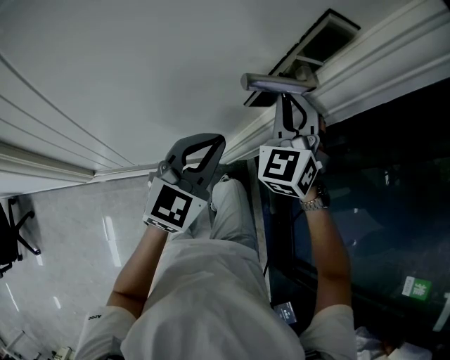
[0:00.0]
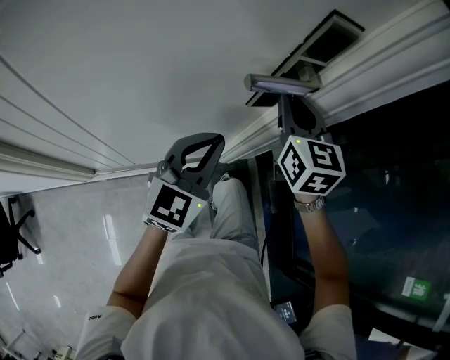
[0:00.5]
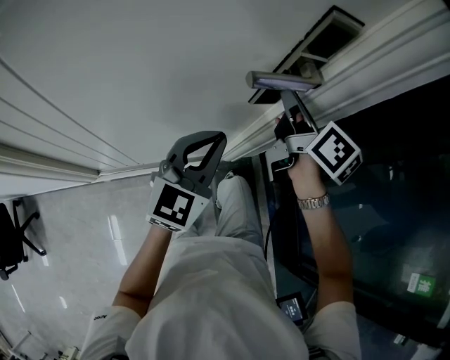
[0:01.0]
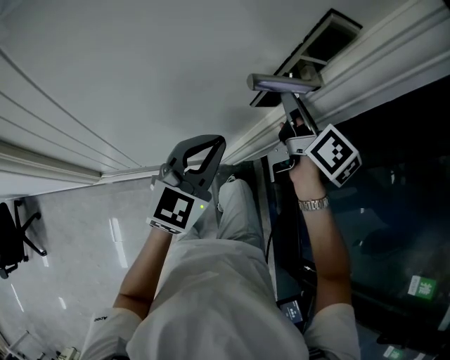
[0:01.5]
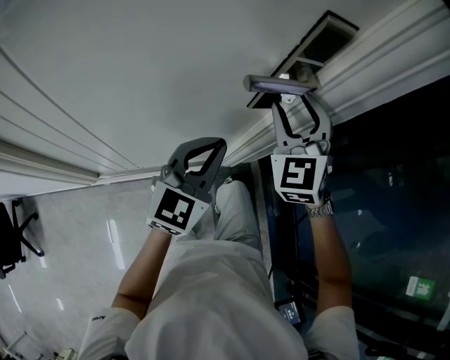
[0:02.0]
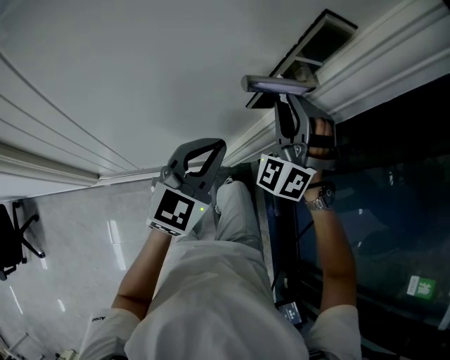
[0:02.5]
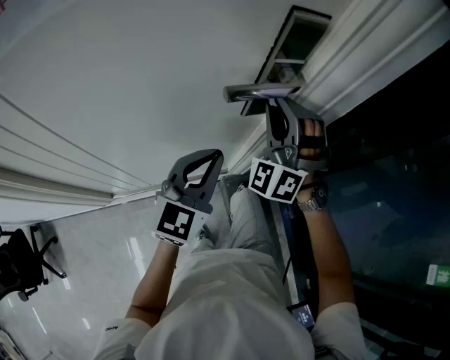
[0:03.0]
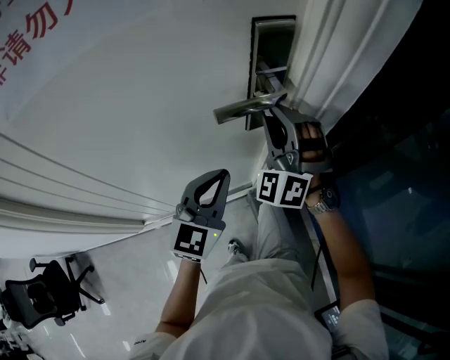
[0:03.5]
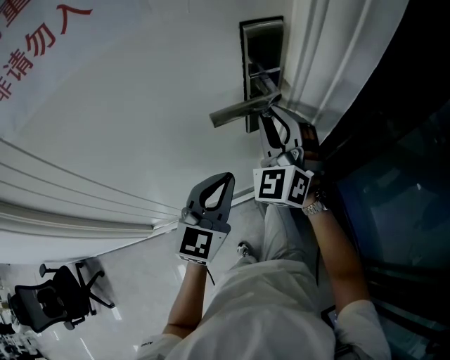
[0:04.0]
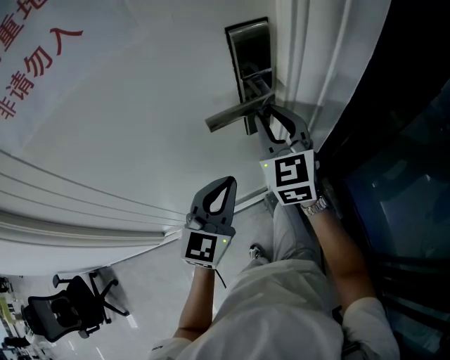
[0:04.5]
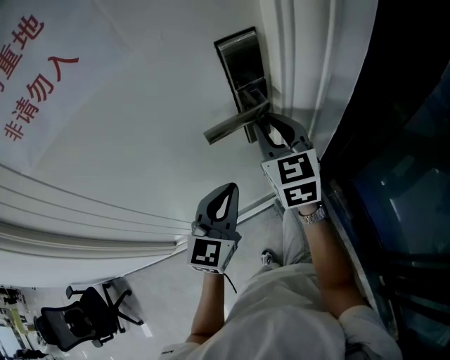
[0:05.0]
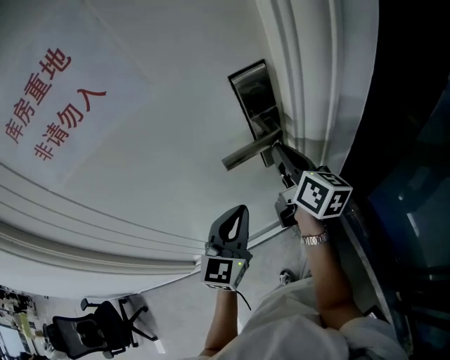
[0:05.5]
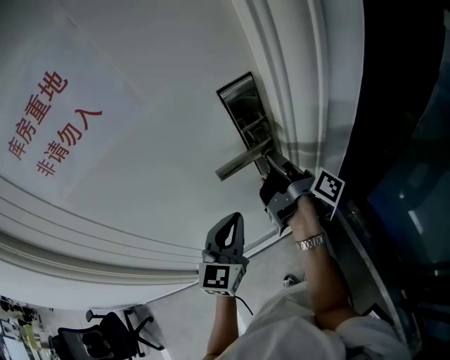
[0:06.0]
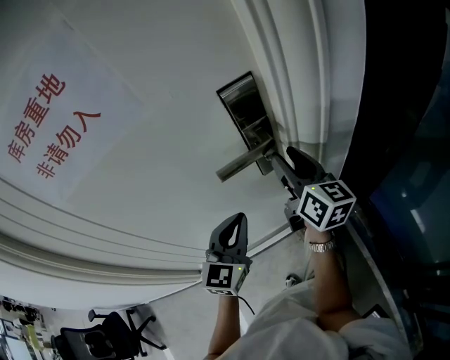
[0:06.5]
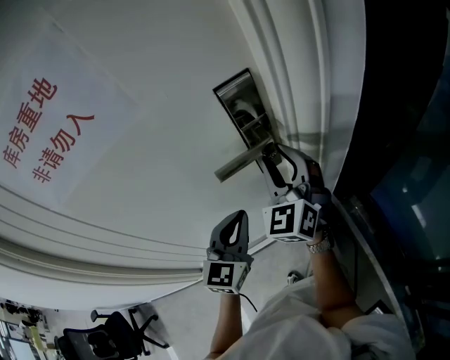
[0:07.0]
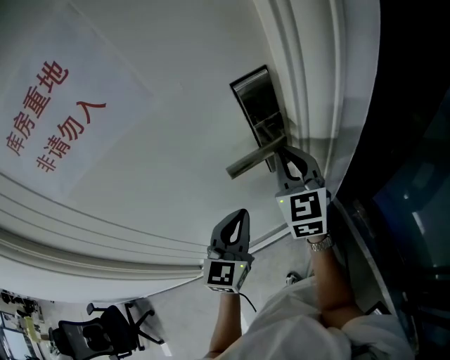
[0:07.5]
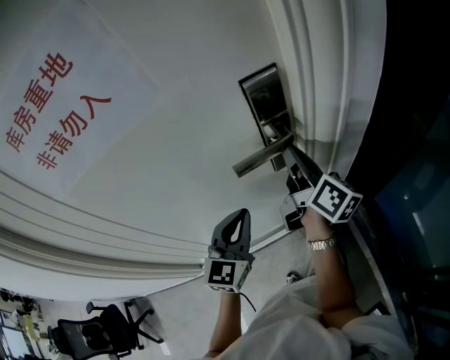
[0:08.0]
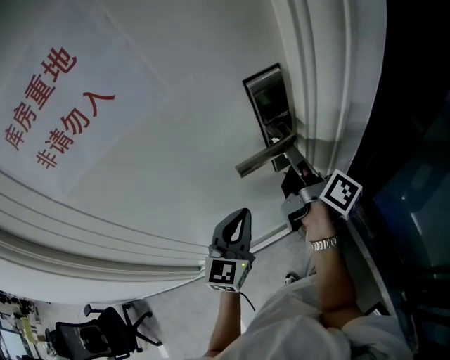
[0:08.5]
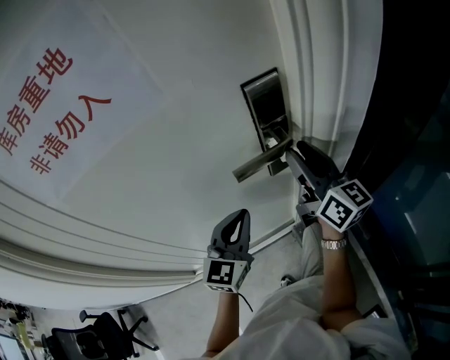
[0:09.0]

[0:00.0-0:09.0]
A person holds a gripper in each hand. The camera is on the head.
0:00.0 to 0:02.0: The right gripper opens up.
0:02.0 to 0:04.5: The right gripper changes its angle by about 30 degrees, and closes its fingers.
0:07.0 to 0:09.0: The right gripper twists roughly 60 degrees clockwise, seen from behind, and closes, then reopens.

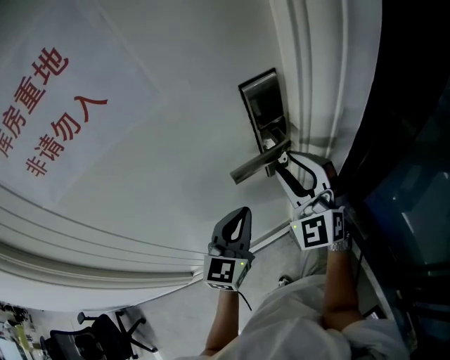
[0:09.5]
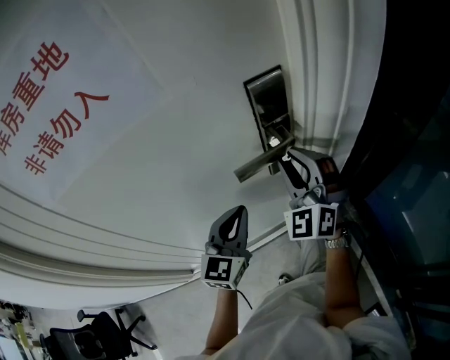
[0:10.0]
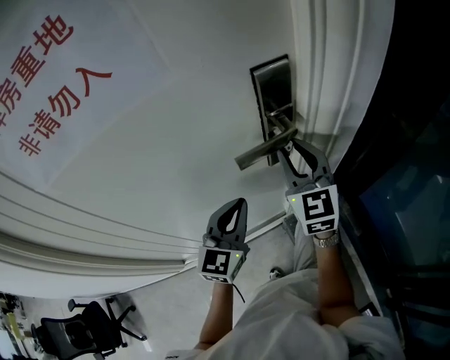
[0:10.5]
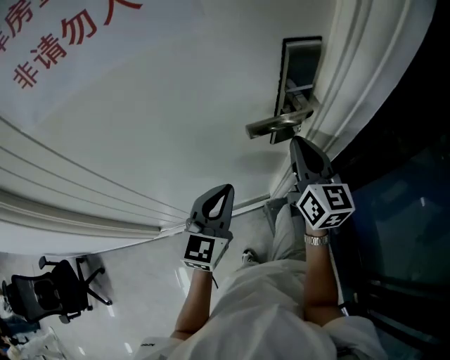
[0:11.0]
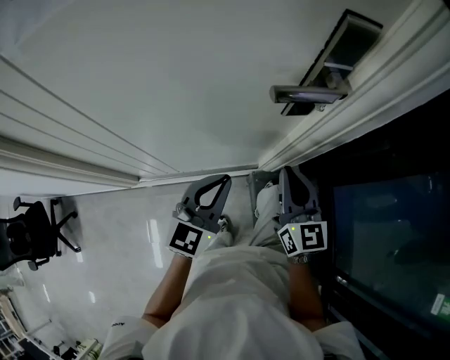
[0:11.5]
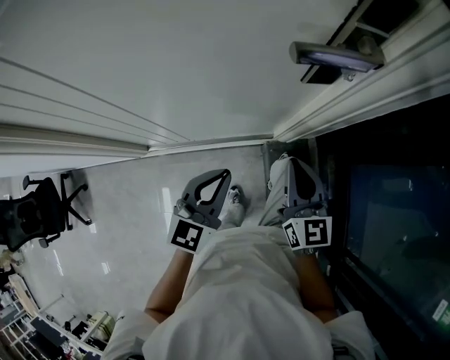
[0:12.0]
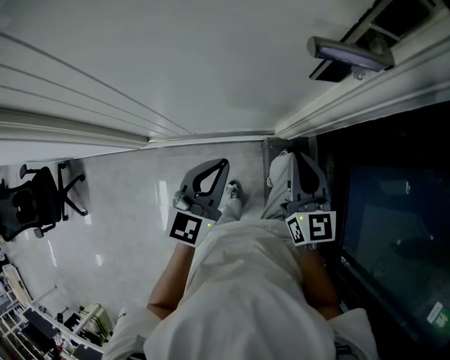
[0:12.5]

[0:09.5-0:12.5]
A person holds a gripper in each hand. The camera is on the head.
0:09.5 to 0:11.0: The left gripper moves some 5 cm; the right gripper twists some 60 degrees clockwise, seen from behind, and closes up.
0:11.0 to 0:12.5: The left gripper travels backward and downward by approximately 15 cm. The right gripper travels downward and backward by approximately 20 cm.

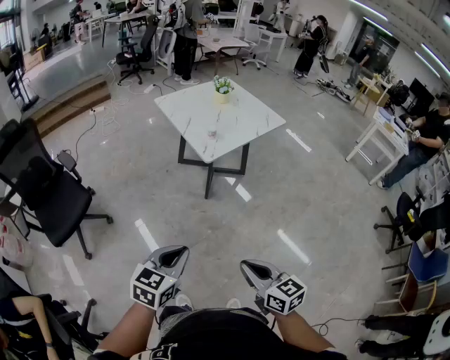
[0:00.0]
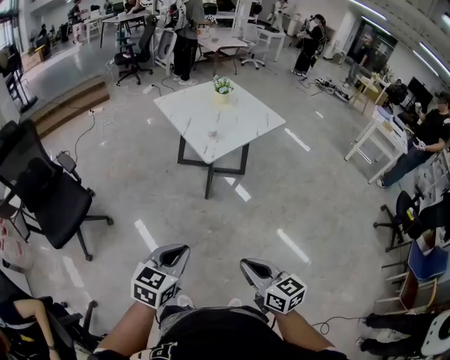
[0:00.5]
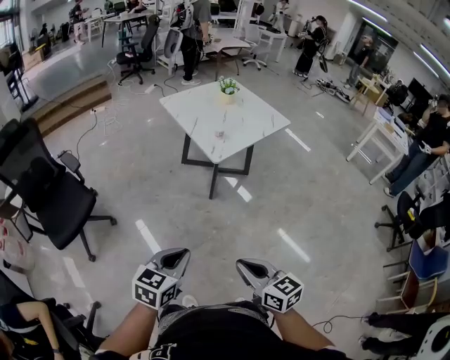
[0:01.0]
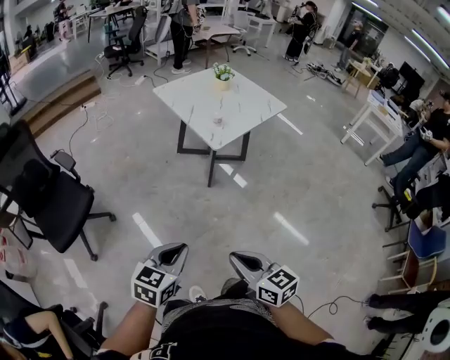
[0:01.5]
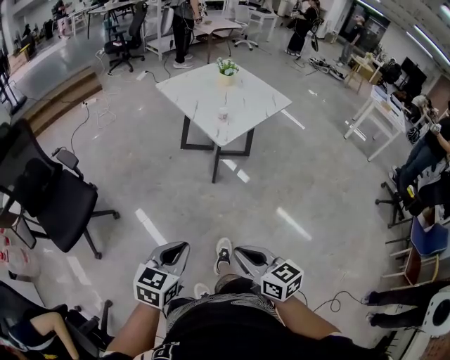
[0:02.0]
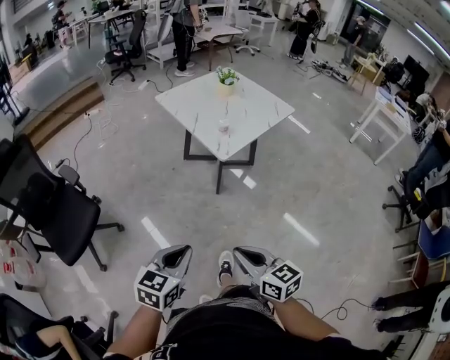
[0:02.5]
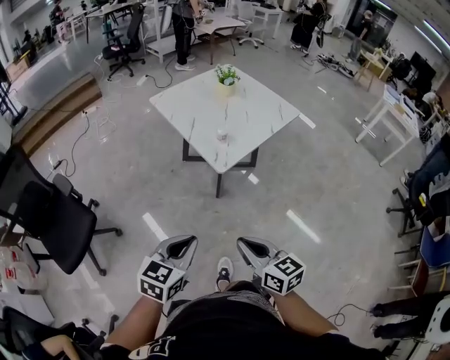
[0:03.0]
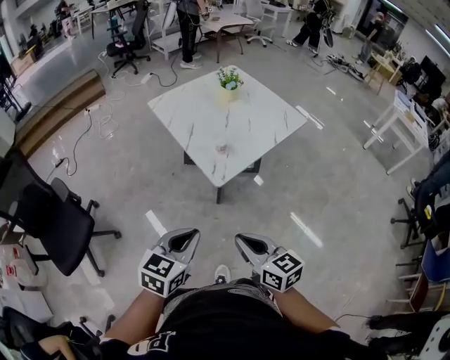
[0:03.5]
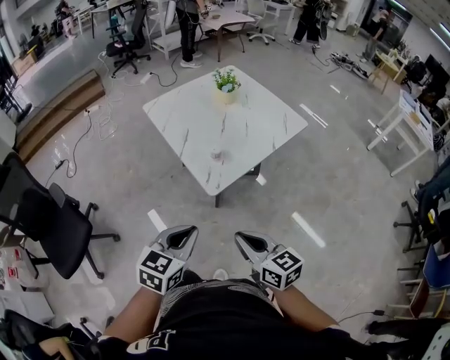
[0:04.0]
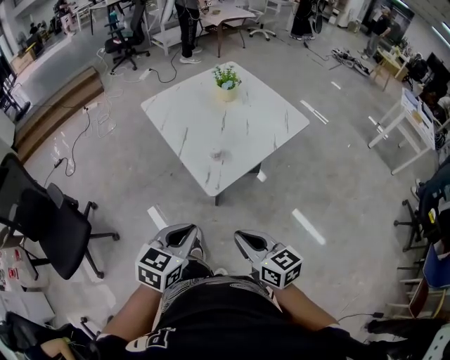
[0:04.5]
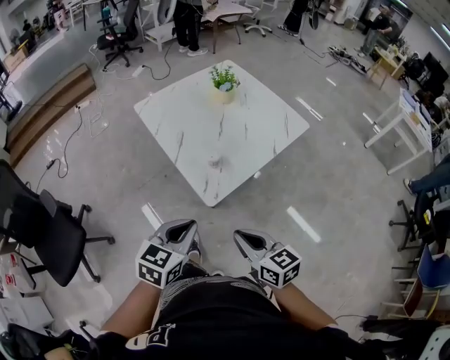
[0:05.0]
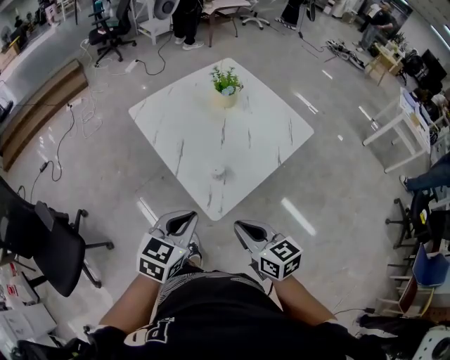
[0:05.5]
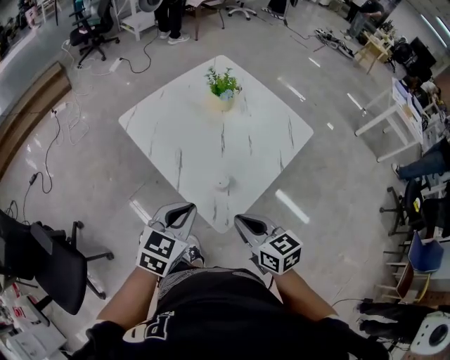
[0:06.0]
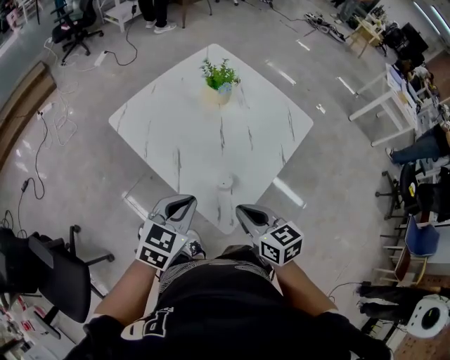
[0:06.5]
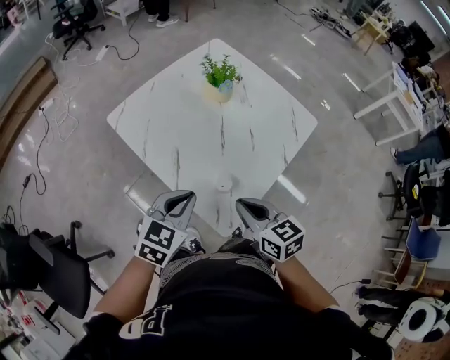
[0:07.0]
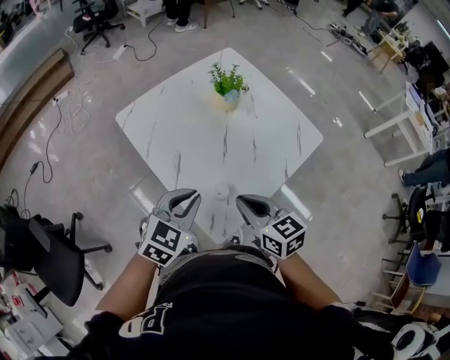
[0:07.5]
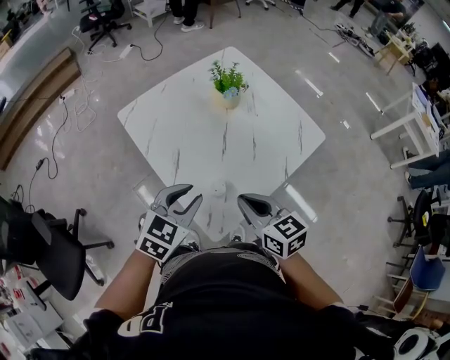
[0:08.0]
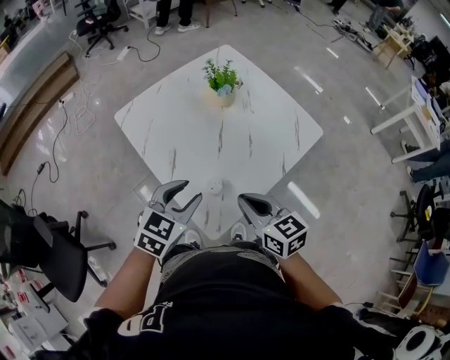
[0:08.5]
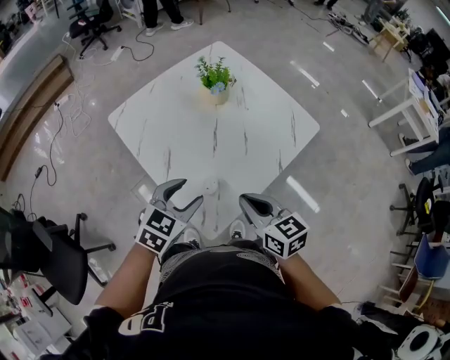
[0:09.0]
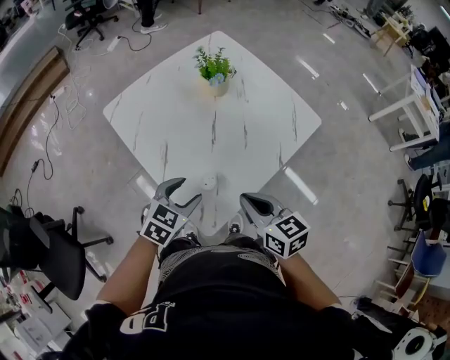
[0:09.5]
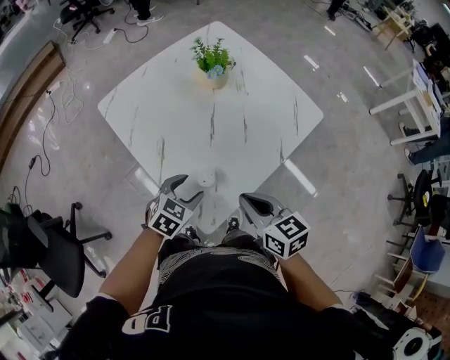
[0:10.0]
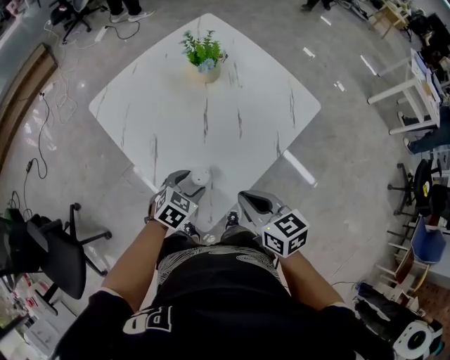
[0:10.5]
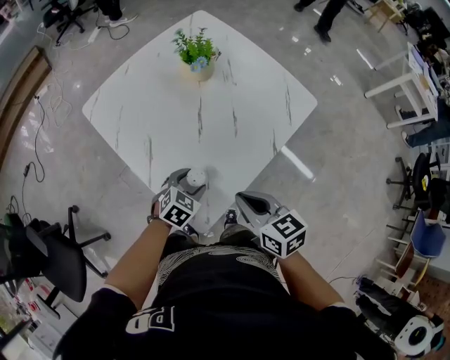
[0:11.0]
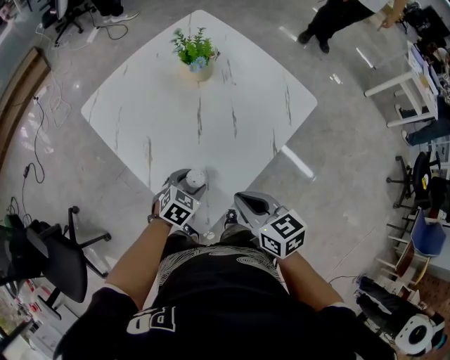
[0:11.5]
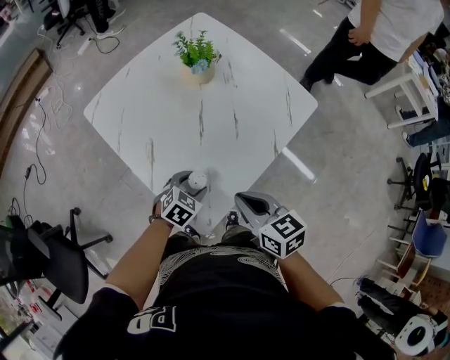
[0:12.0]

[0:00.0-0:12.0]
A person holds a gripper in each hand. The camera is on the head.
0:00.0 to 0:02.0: Both grippers move to the left, roughly 15 cm.
0:02.0 to 0:04.0: The right gripper goes roughly 35 cm forward. The left gripper is displaced forward and to the right by some 35 cm.
0:04.0 to 0:06.0: Both grippers move forward, roughly 25 cm.
0:06.0 to 0:08.0: Both grippers travel together forward, roughly 10 cm. The left gripper opens.
0:08.0 to 0:10.0: The left gripper shifts roughly 15 cm downward, and opens its fingers. Meanwhile the right gripper changes place by about 5 cm.
0:10.0 to 0:12.0: The left gripper is displaced downward by some 5 cm.

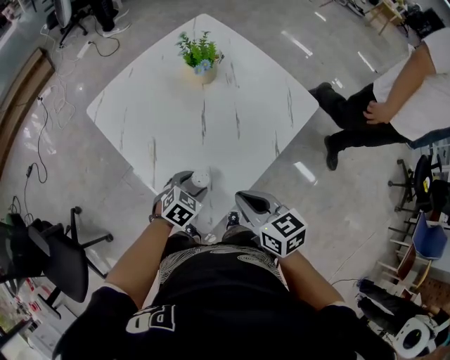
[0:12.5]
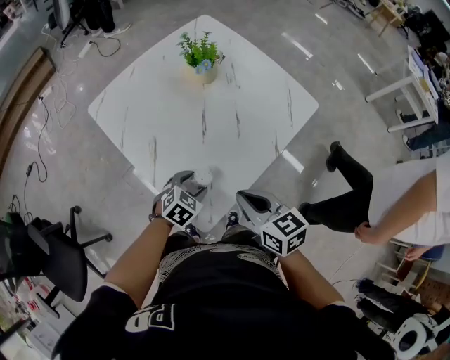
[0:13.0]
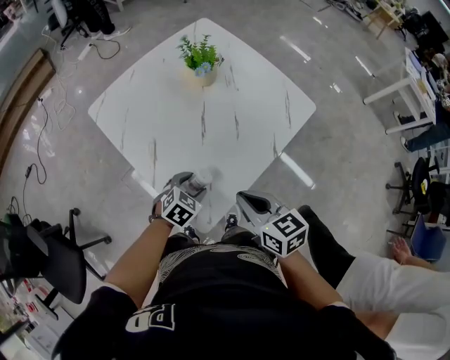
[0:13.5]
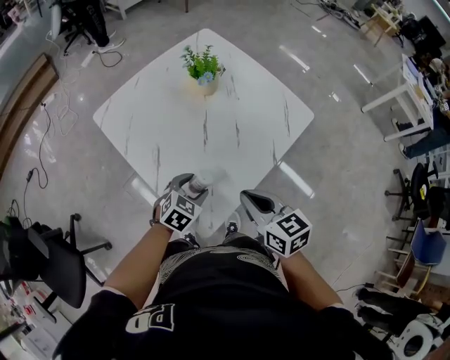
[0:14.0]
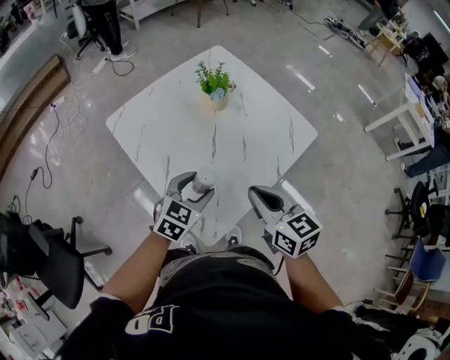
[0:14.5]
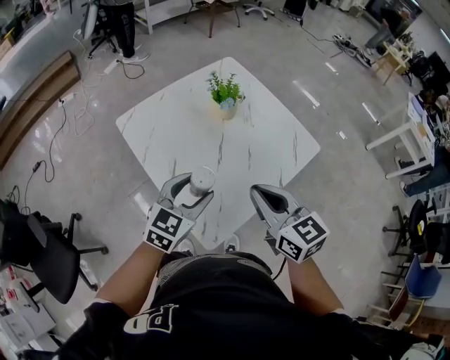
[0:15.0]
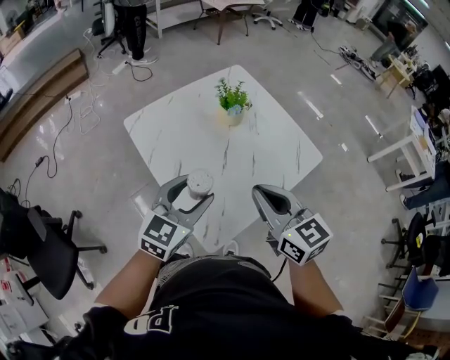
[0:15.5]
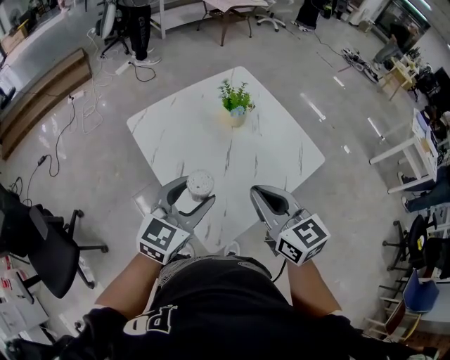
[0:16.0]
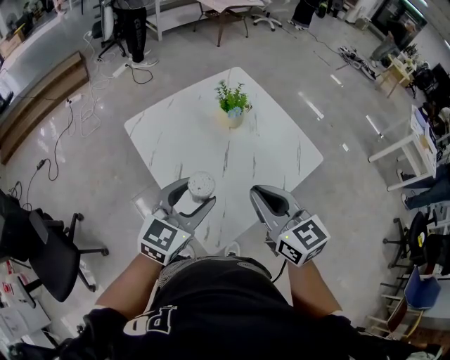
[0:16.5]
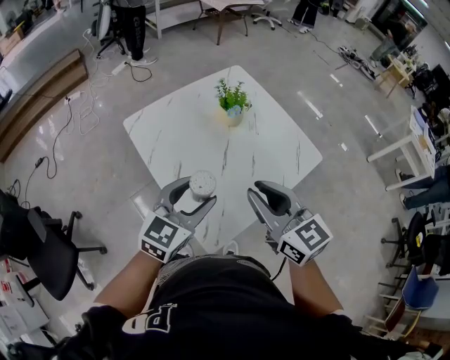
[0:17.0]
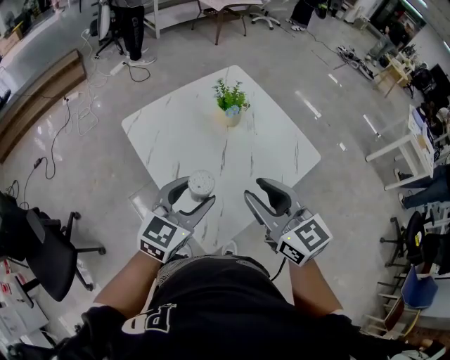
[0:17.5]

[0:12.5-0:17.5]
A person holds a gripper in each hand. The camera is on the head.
0:12.5 to 0:15.0: The left gripper heads upward, covering roughly 20 cm, and tips its fingers upward by some 30 degrees, while the right gripper goes about 15 cm upward.
0:15.0 to 0:17.5: The left gripper goes about 5 cm upward; the right gripper changes place by about 5 cm, and opens its fingers.
